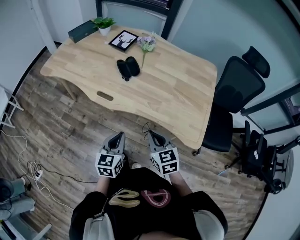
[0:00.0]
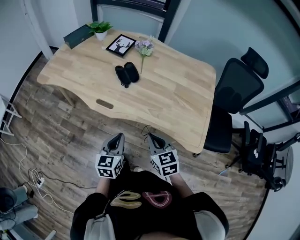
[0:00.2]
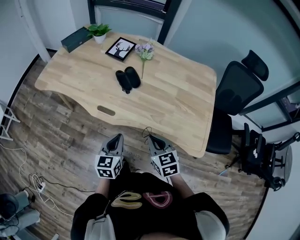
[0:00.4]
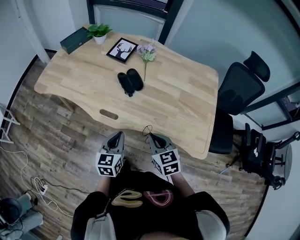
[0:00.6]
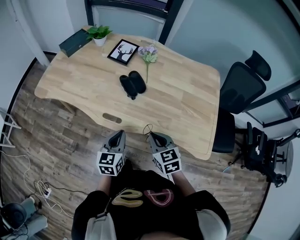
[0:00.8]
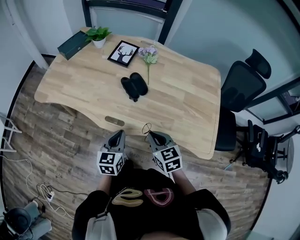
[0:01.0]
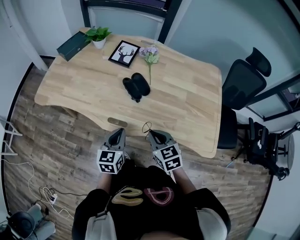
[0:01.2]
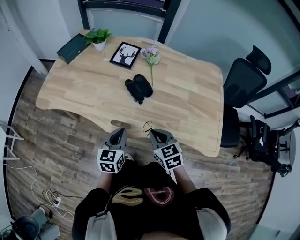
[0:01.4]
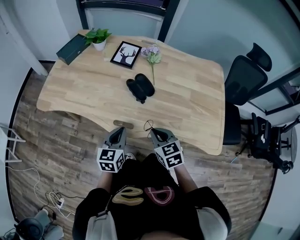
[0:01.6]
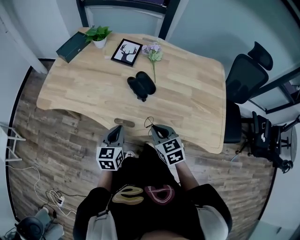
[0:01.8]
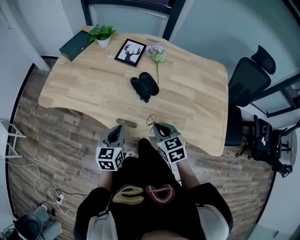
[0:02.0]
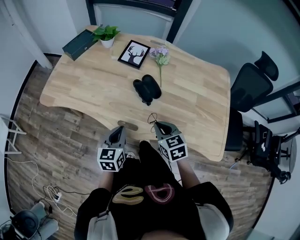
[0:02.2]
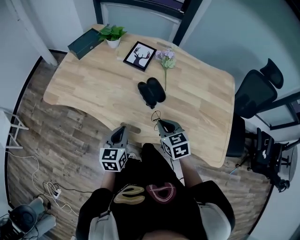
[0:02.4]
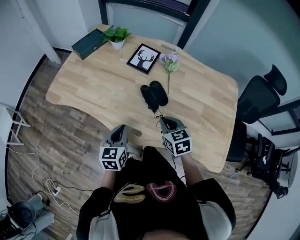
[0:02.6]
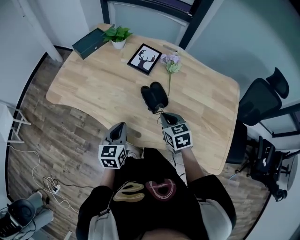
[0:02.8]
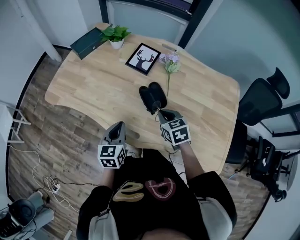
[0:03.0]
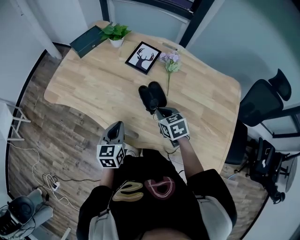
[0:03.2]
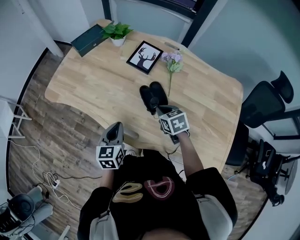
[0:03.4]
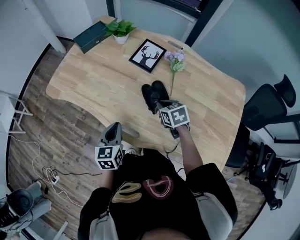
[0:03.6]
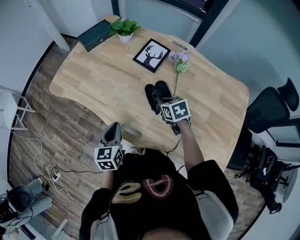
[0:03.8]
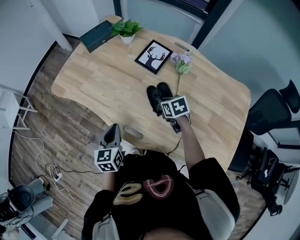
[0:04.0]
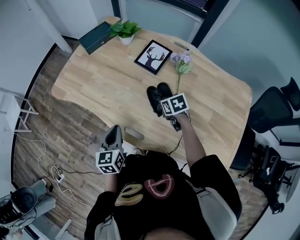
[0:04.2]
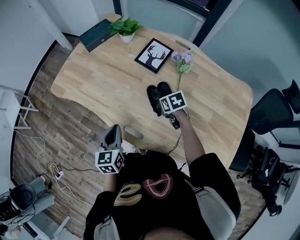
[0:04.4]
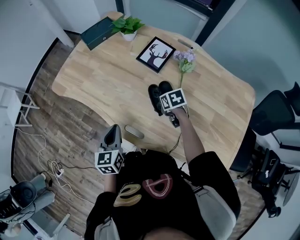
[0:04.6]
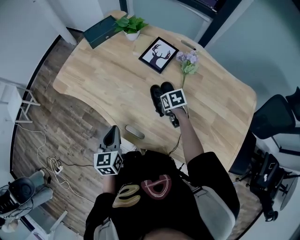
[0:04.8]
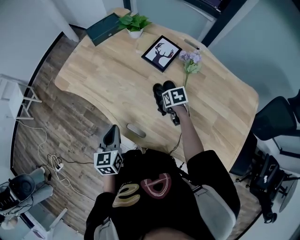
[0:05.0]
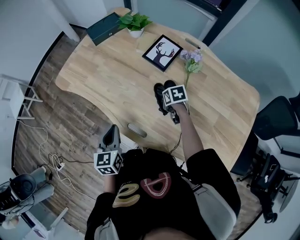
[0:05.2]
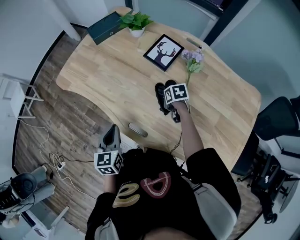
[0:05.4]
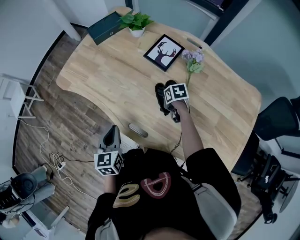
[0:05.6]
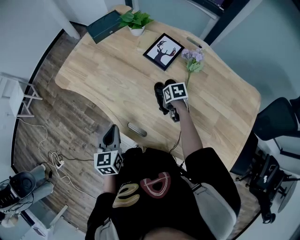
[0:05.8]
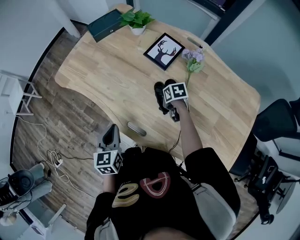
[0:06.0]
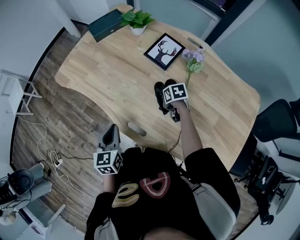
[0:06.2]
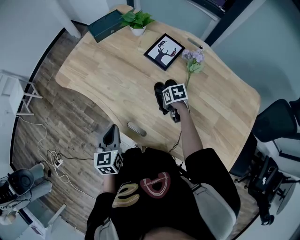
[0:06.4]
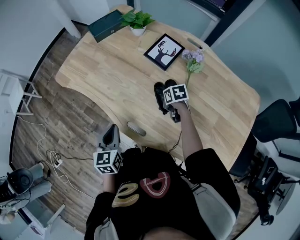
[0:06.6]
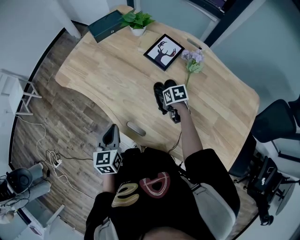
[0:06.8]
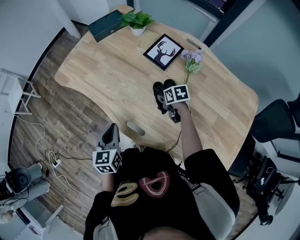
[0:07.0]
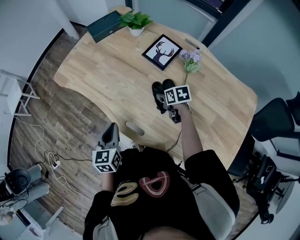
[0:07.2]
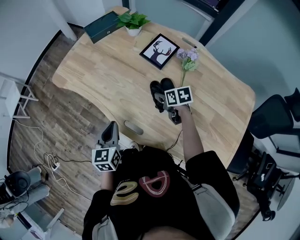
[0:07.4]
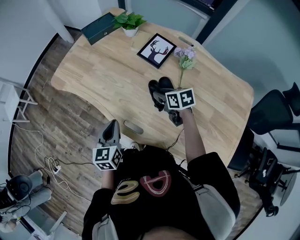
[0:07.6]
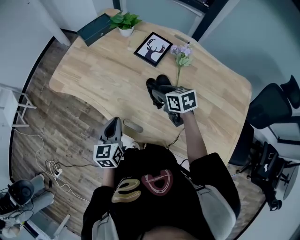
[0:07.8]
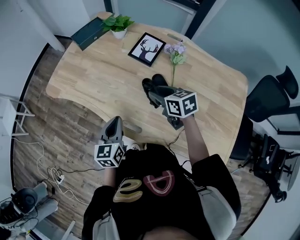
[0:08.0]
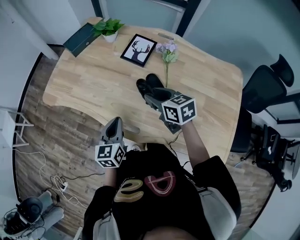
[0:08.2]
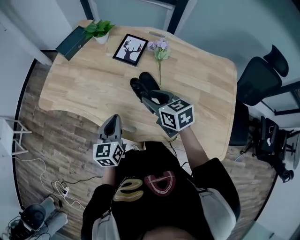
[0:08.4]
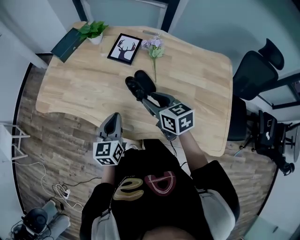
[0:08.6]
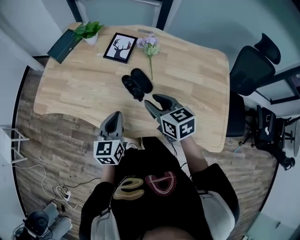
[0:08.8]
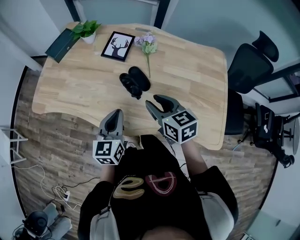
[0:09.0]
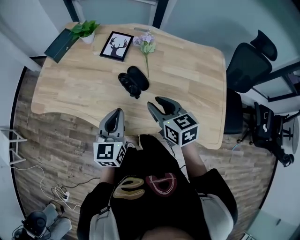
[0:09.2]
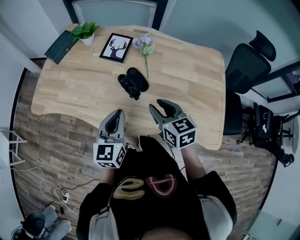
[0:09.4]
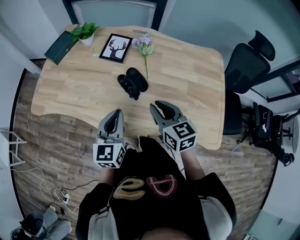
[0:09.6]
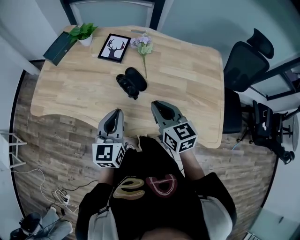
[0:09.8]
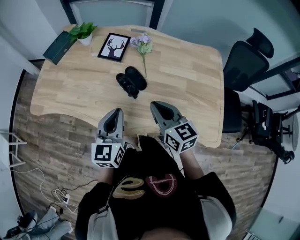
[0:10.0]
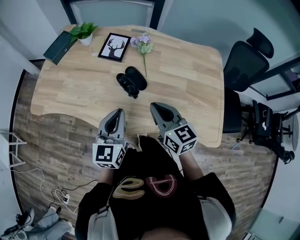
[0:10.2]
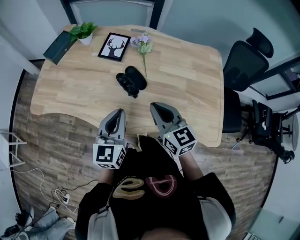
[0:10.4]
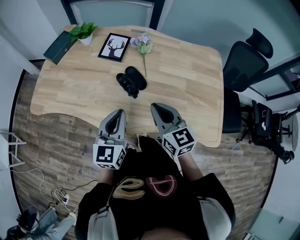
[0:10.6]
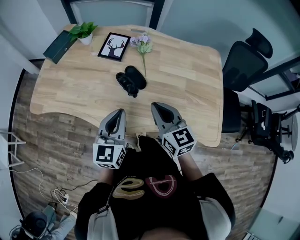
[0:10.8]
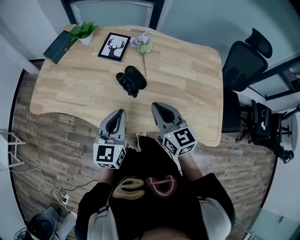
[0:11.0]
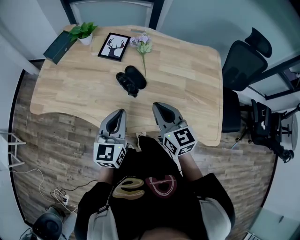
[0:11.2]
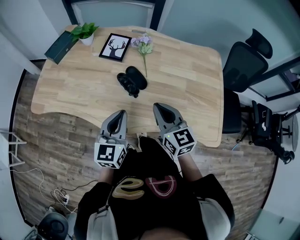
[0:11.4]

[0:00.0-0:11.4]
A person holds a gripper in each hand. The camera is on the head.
0.0 to 1.4 s: Both grippers travel together forward and to the left, some 20 cm.
1.4 to 2.8 s: The left gripper shifts some 10 cm forward and to the left, while the right gripper moves forward, about 15 cm.
2.8 to 4.2 s: The right gripper goes about 15 cm forward and downward, and changes its angle by some 20 degrees.
4.2 to 5.6 s: The right gripper moves downward, about 5 cm.
5.6 to 7.2 s: The right gripper opens its fingers.
7.2 to 8.6 s: The left gripper ends up some 10 cm from where it was, and turns by roughly 20 degrees. Meanwhile the right gripper moves upward, approximately 20 cm, and rotates approximately 30 degrees.
8.6 to 10.0 s: The left gripper moves upward, approximately 5 cm. The right gripper travels backward by roughly 10 cm, and closes up.
10.0 to 11.4 s: There are only small adjustments of the grippers.

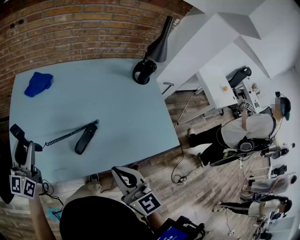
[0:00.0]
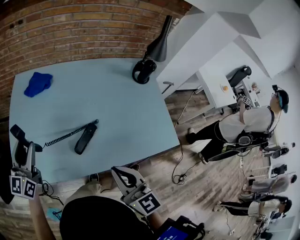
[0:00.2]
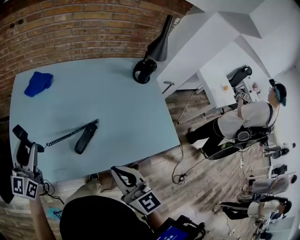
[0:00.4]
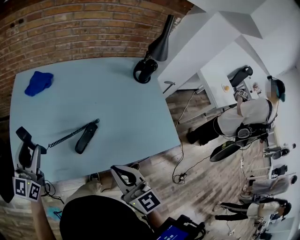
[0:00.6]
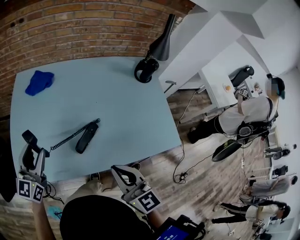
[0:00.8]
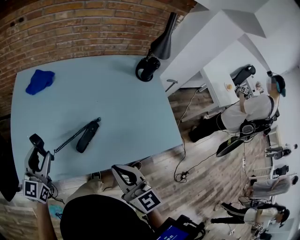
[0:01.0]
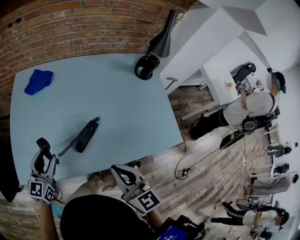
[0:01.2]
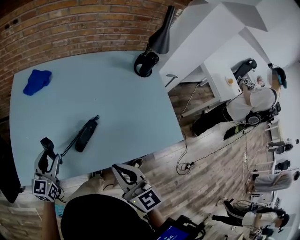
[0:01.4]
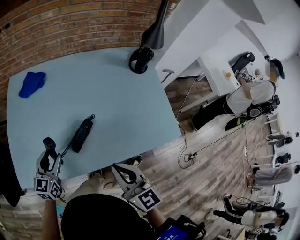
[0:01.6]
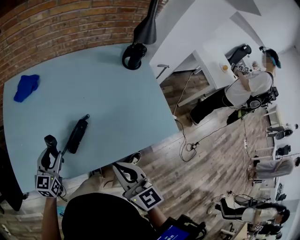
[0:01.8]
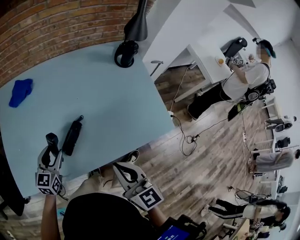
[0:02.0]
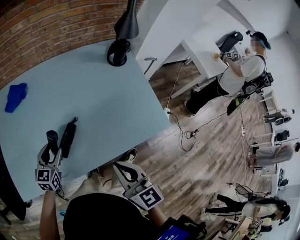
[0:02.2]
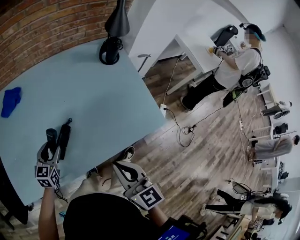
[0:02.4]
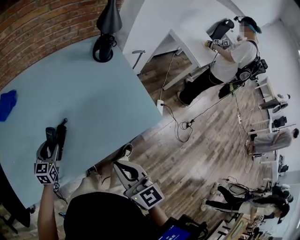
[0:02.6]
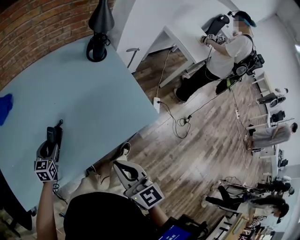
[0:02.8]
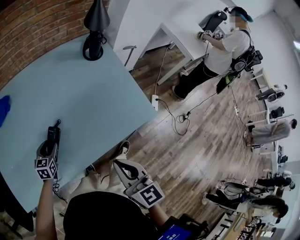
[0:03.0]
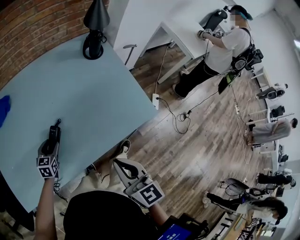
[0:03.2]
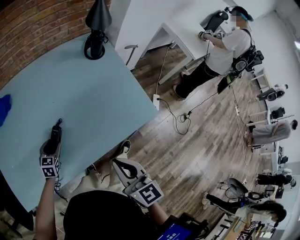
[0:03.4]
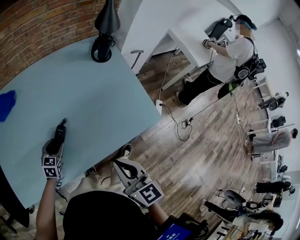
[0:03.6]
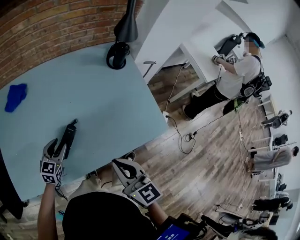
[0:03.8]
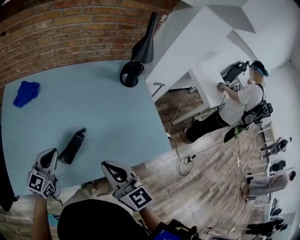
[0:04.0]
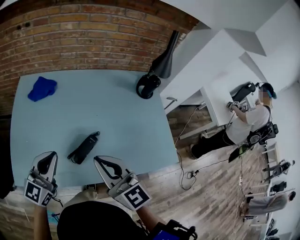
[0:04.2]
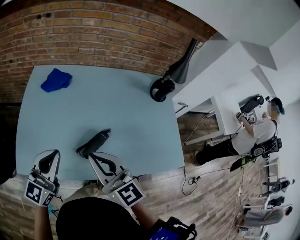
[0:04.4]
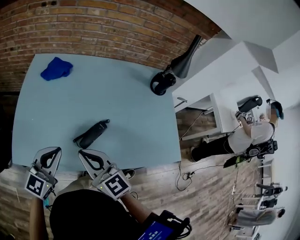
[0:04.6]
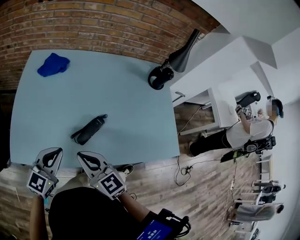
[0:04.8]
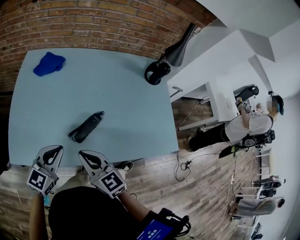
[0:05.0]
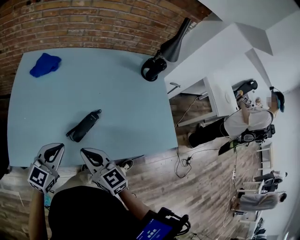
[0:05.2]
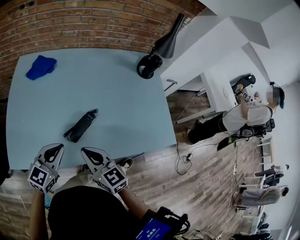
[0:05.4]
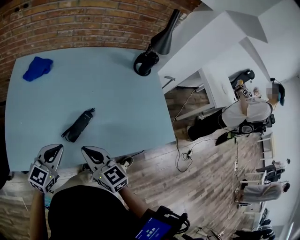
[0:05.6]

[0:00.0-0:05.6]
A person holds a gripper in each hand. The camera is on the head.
0.0 to 1.4 s: The left gripper goes about 15 cm downward and to the right.
1.4 to 2.8 s: The left gripper travels to the right, downward and forward by approximately 20 cm, and turns by about 20 degrees. Meanwhile the right gripper goes roughly 15 cm to the right.
2.8 to 4.2 s: The right gripper goes about 20 cm to the left, upward and forward, and swivels roughly 30 degrees; the left gripper moves upward, roughly 25 cm, angles its fingers upward, by roughly 30 degrees, and closes.
4.2 to 5.6 s: The right gripper is displaced downward by about 15 cm. Meanwhile the left gripper moves downward and backward, about 10 cm.

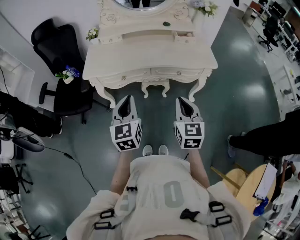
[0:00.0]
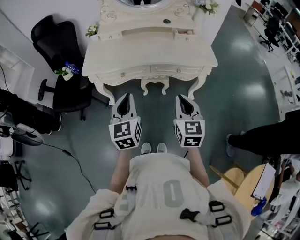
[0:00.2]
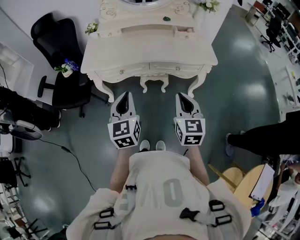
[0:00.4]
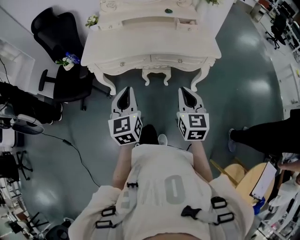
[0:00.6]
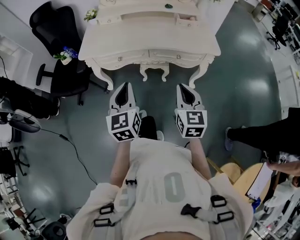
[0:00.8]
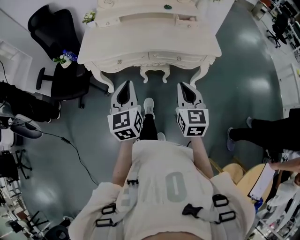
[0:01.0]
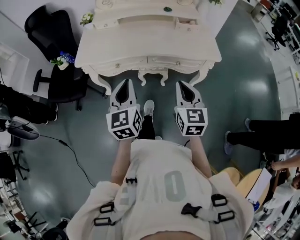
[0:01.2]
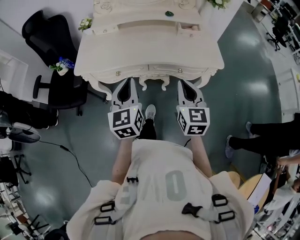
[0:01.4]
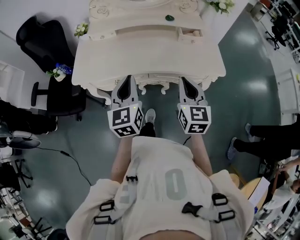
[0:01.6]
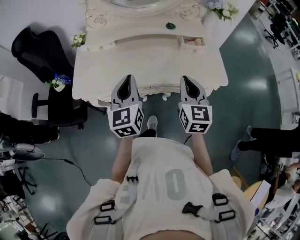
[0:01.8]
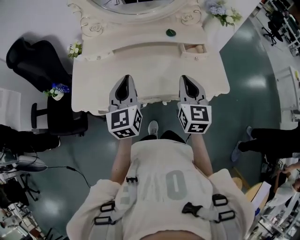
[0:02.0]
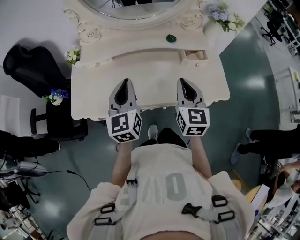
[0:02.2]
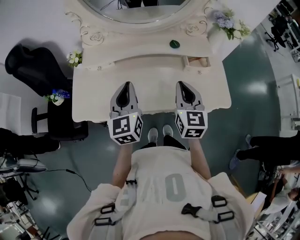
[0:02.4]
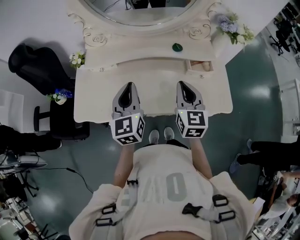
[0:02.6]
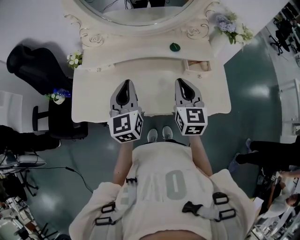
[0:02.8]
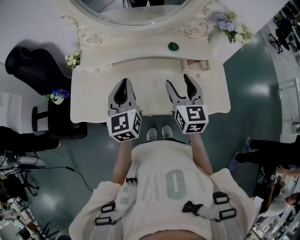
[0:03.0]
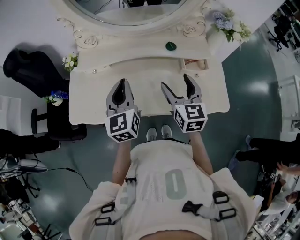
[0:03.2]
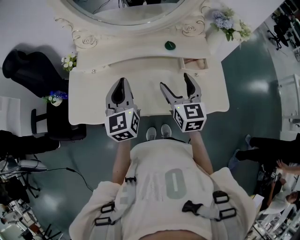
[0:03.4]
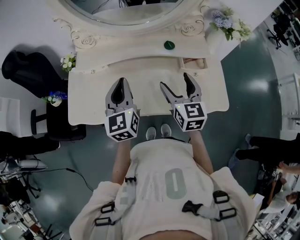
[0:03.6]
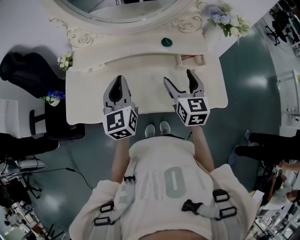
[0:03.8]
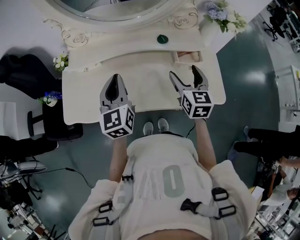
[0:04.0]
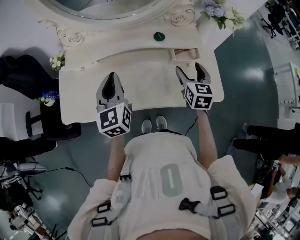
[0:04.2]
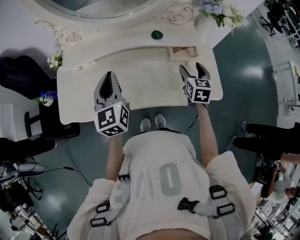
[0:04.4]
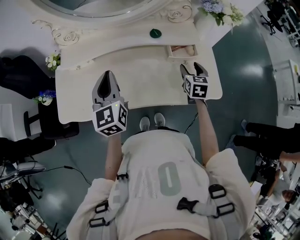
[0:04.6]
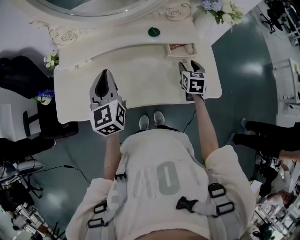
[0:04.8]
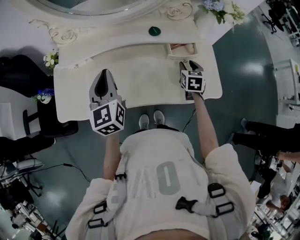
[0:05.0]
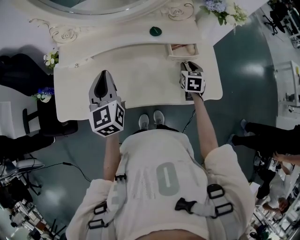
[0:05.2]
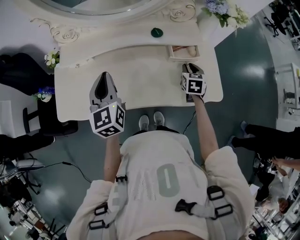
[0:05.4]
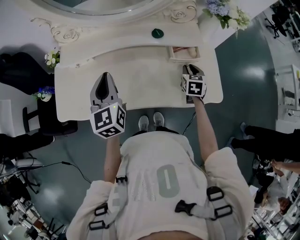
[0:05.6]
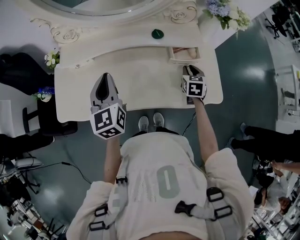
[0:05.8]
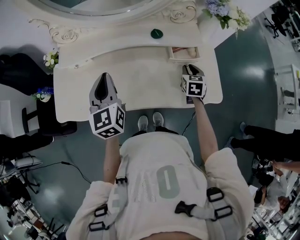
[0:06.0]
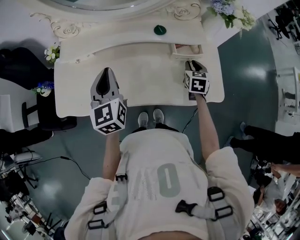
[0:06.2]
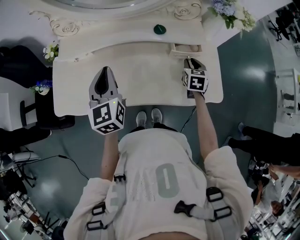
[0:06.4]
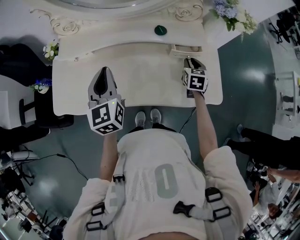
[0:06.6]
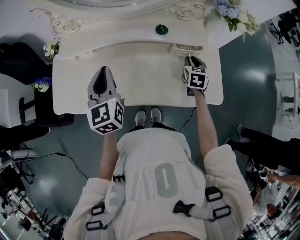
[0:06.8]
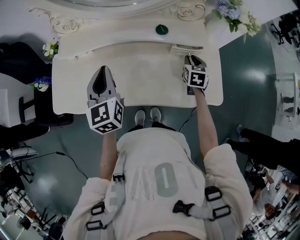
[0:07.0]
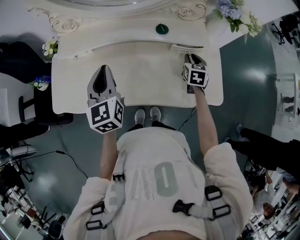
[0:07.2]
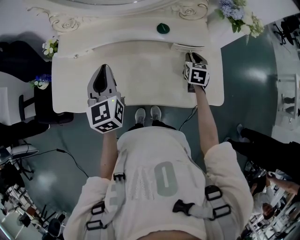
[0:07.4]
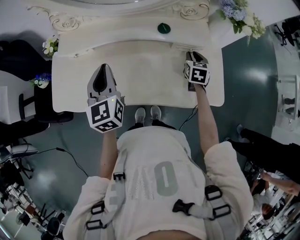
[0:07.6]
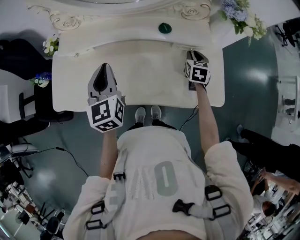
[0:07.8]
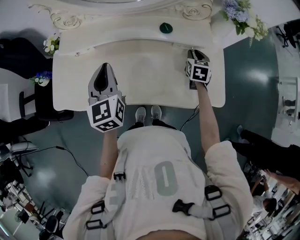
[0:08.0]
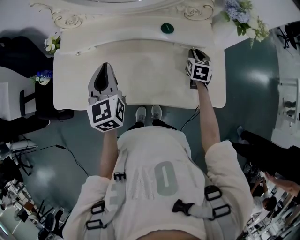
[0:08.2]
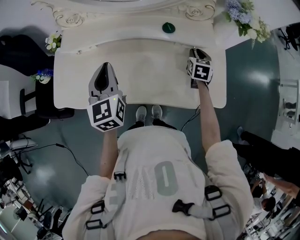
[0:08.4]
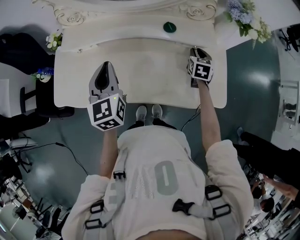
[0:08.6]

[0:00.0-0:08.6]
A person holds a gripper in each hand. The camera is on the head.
0.0 to 1.4 s: Both grippers travel together forward, some 10 cm.
1.4 to 2.8 s: Both grippers move forward, roughly 30 cm.
2.8 to 4.4 s: The right gripper shifts approximately 20 cm to the right and downward, and opens.
4.4 to 5.8 s: The right gripper shifts approximately 10 cm downward, and closes its fingers.
5.8 to 7.2 s: The right gripper shifts about 5 cm forward.
7.2 to 8.6 s: There are only small adjustments of the grippers.
